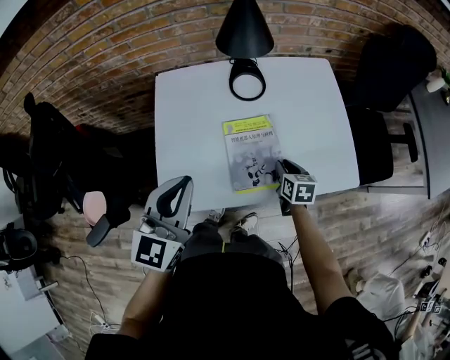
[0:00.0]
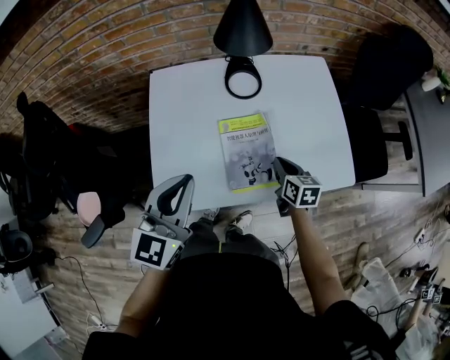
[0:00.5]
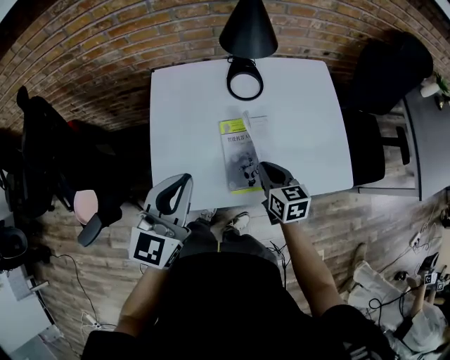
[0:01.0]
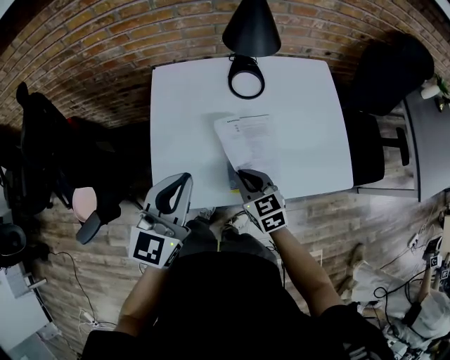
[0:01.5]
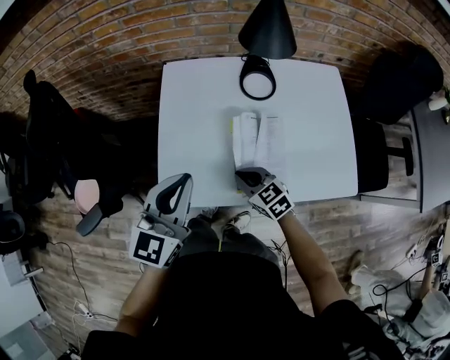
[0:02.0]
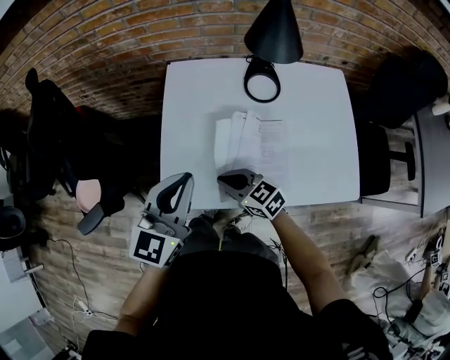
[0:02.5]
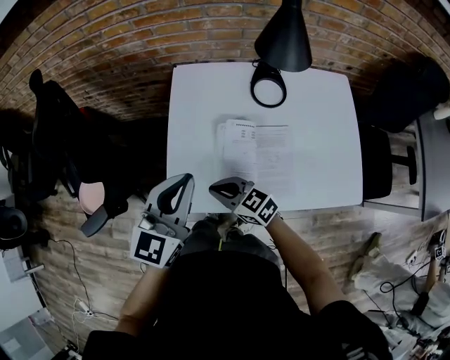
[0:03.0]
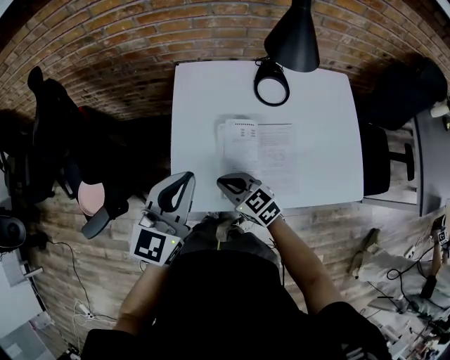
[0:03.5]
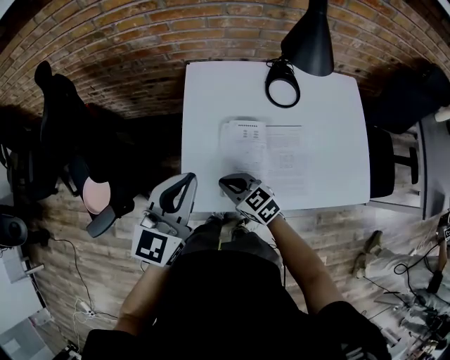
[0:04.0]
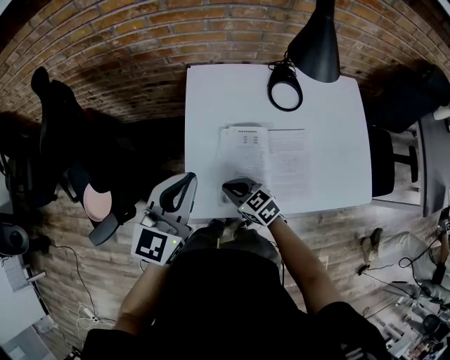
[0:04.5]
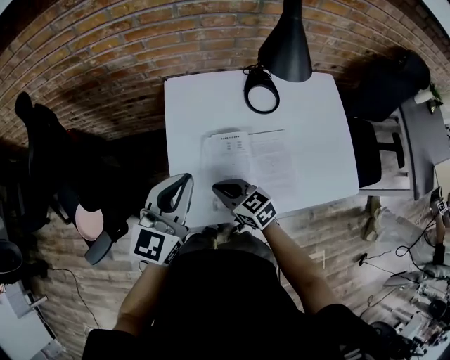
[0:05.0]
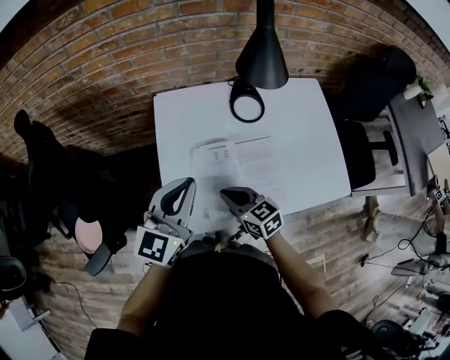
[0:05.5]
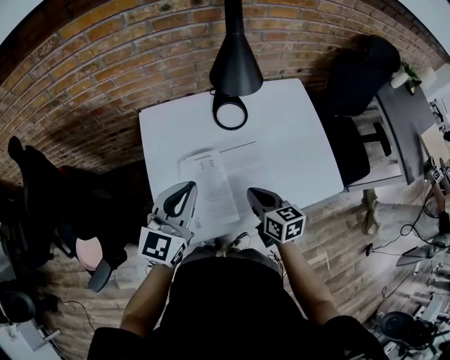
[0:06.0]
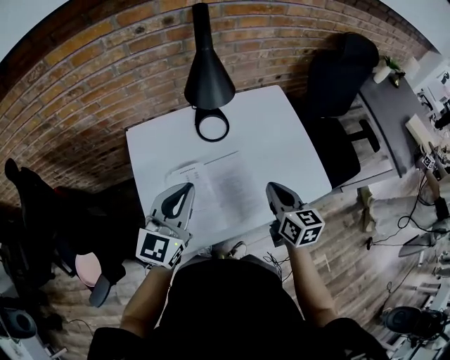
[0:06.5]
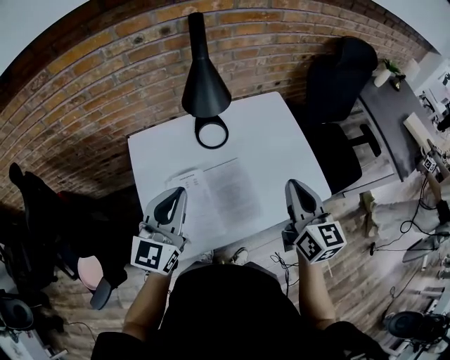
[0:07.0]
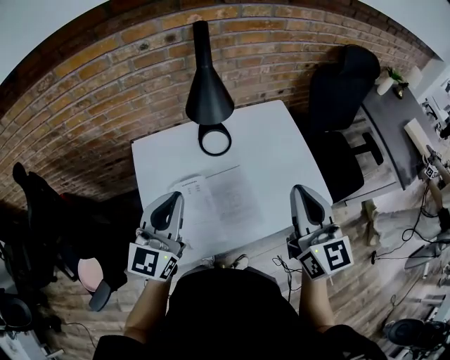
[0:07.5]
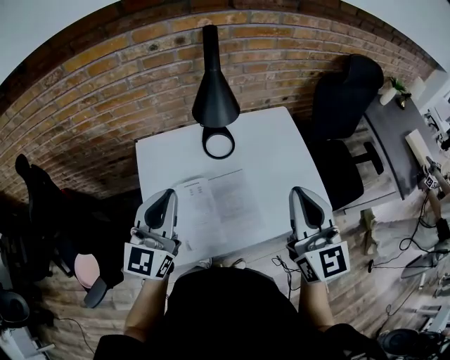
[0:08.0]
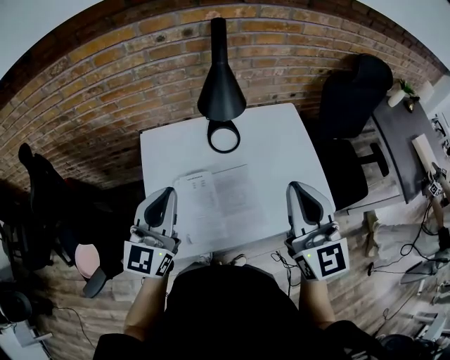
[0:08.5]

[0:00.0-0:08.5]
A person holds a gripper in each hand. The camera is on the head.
0:00.0 to 0:02.0: The right gripper goes some 20 cm to the left, rotates some 50 degrees, and closes.
0:02.0 to 0:04.0: The left gripper shifts about 5 cm to the left, while the right gripper shifts about 15 cm to the left.
0:04.0 to 0:06.5: The right gripper shifts by some 35 cm, and swivels approximately 60 degrees. The left gripper moves about 15 cm, and swivels about 20 degrees.
0:06.5 to 0:08.5: The right gripper is displaced upward by about 20 cm, and rotates some 40 degrees, while the left gripper shifts some 5 cm upward.

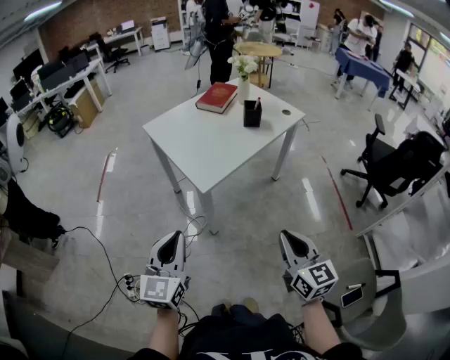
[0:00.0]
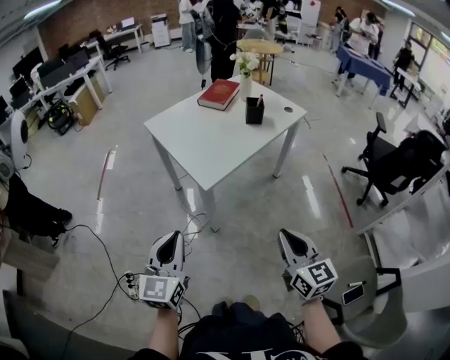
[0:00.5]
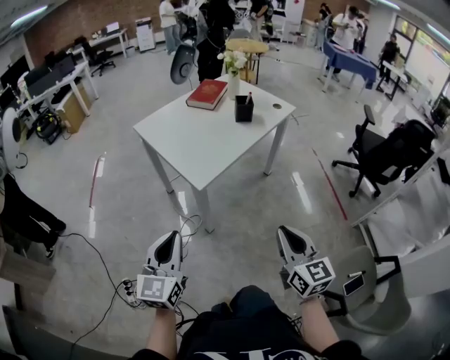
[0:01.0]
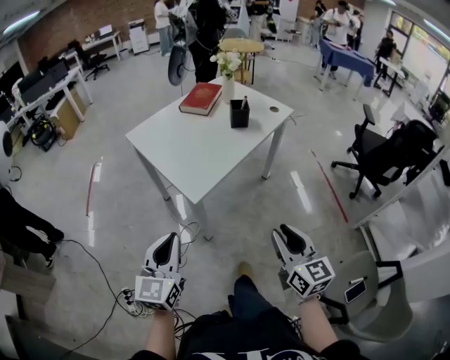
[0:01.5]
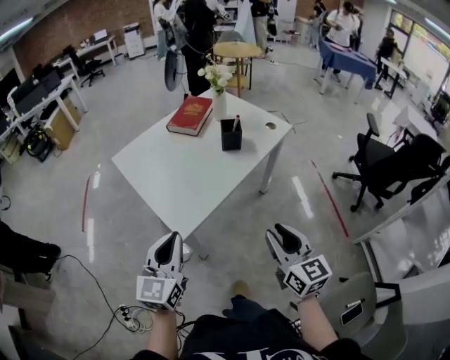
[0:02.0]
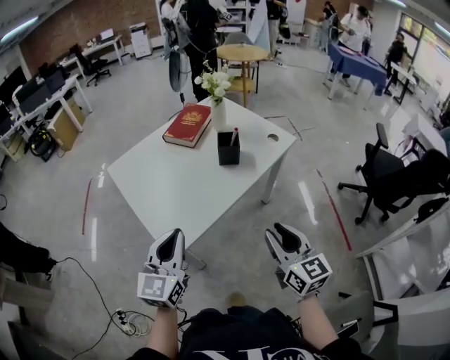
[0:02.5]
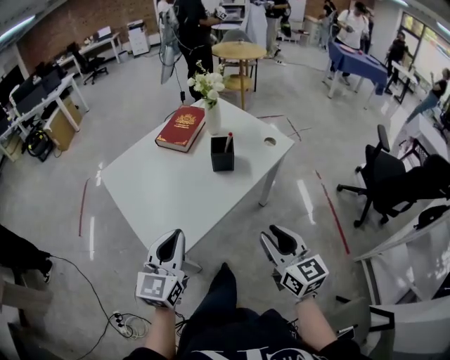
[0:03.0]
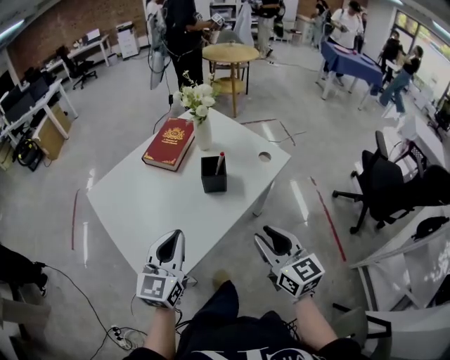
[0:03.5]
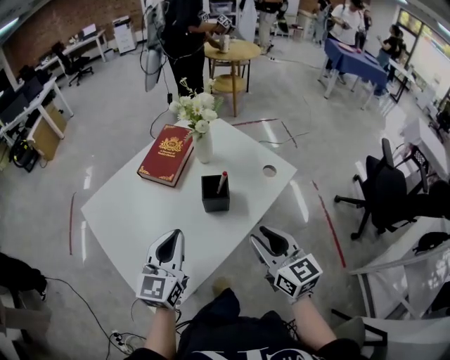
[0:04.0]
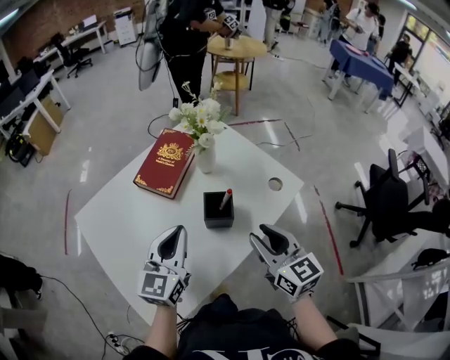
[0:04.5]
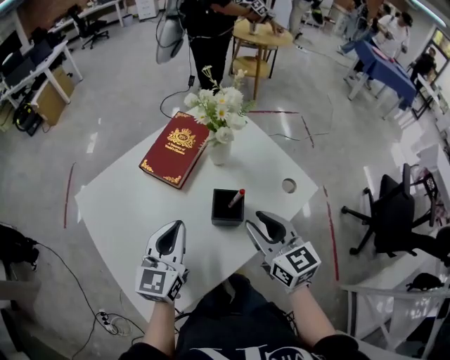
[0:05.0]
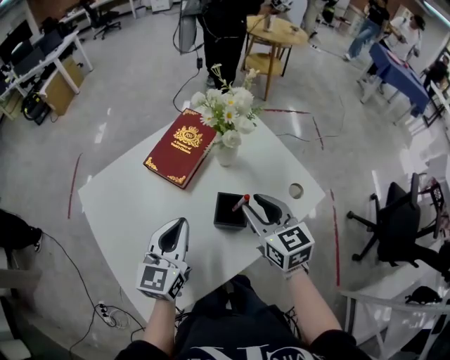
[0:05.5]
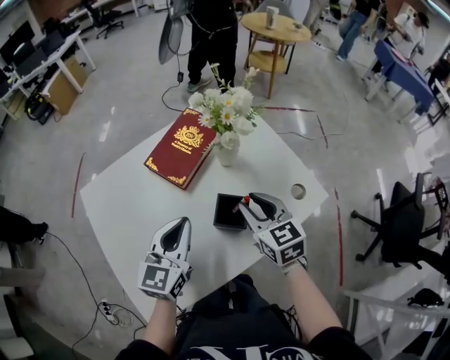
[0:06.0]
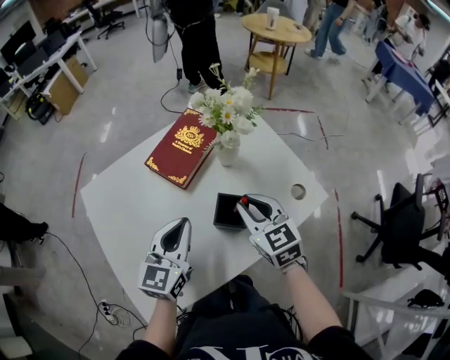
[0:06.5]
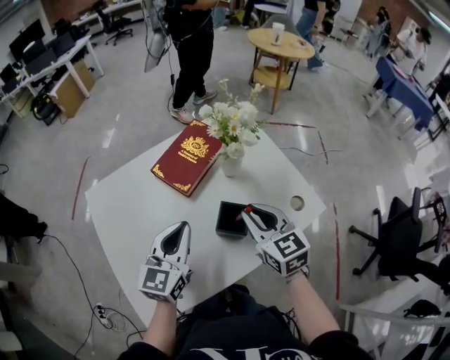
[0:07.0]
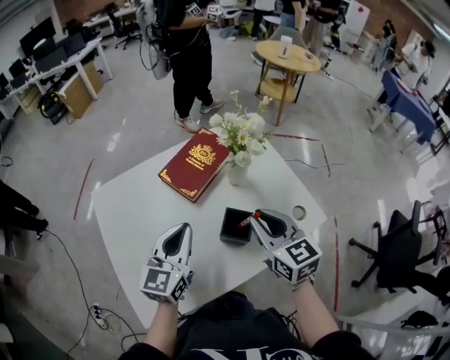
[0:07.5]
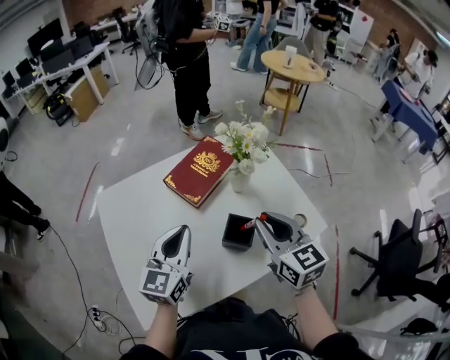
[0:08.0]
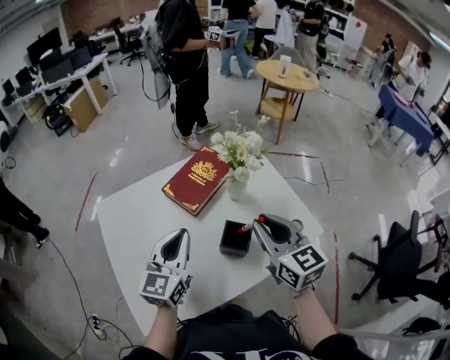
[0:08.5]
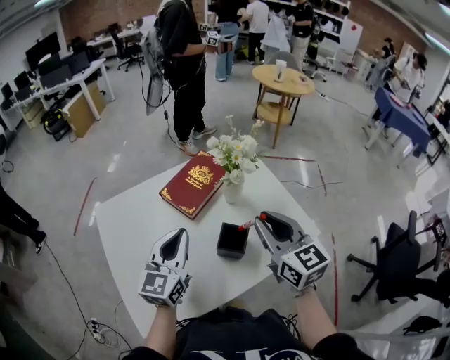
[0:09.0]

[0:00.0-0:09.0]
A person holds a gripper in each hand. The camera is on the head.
0:00.0 to 0:02.0: Both grippers travel together forward, approximately 20 cm. The right gripper opens.
0:02.0 to 0:04.5: The two grippers go some 40 cm forward.
0:04.5 to 0:07.0: The right gripper shifts roughly 15 cm forward.
0:07.0 to 0:09.0: The left gripper shifts by roughly 5 cm, while the right gripper goes roughly 10 cm upward.

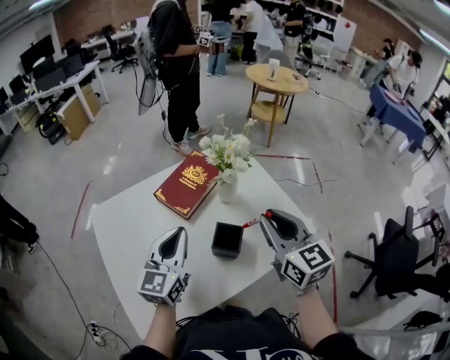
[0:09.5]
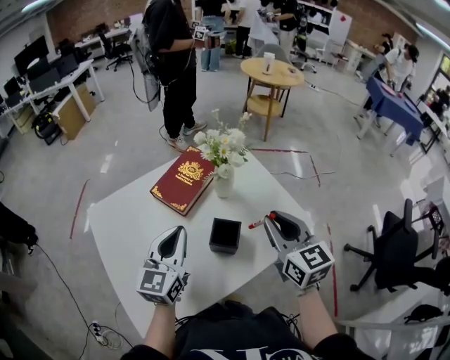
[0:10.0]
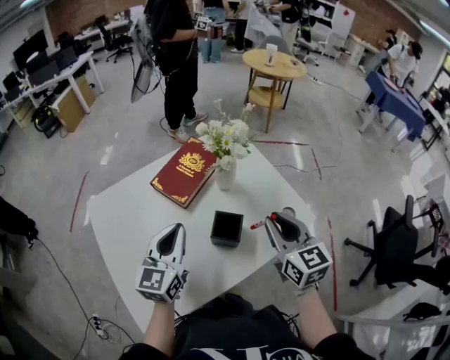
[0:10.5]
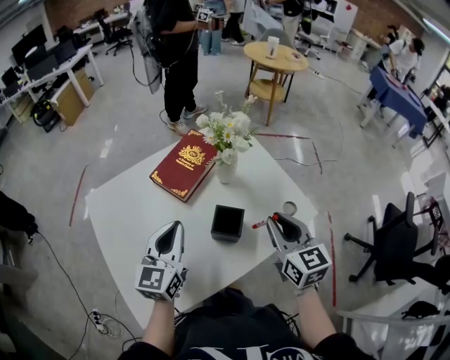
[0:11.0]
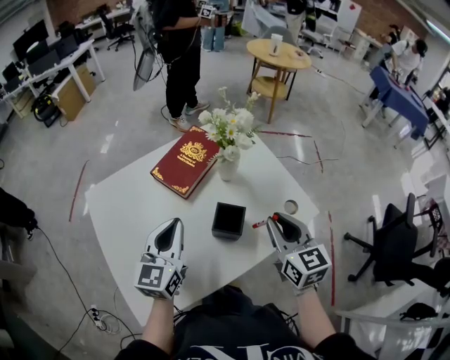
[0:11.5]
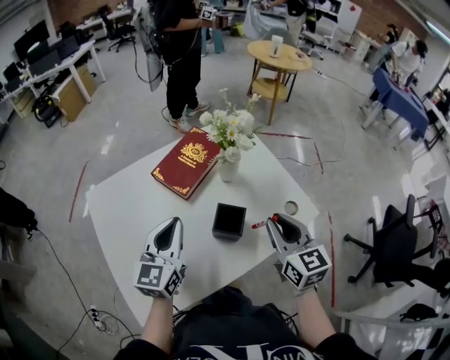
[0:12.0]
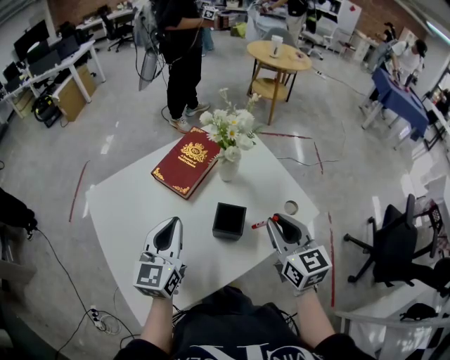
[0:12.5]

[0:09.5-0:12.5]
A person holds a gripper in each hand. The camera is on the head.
0:09.5 to 0:11.0: The right gripper is displaced downward by approximately 10 cm.
0:11.0 to 0:12.5: Neither gripper changes place.

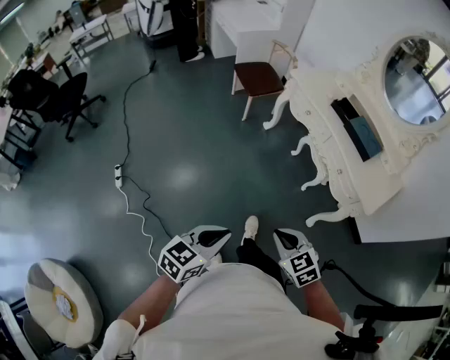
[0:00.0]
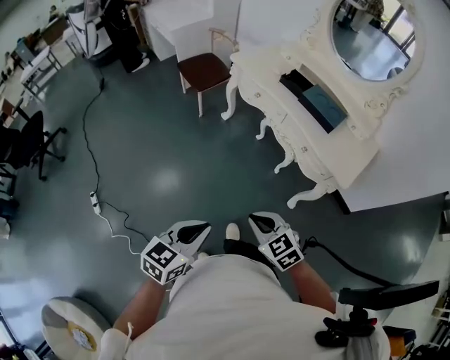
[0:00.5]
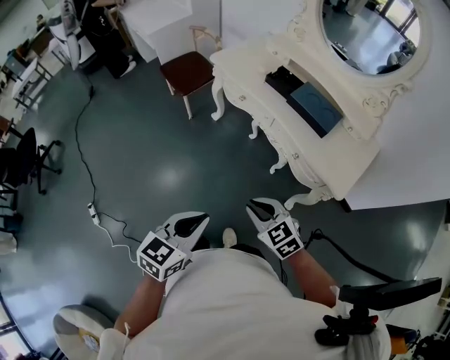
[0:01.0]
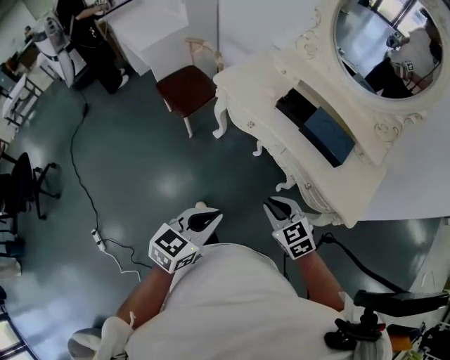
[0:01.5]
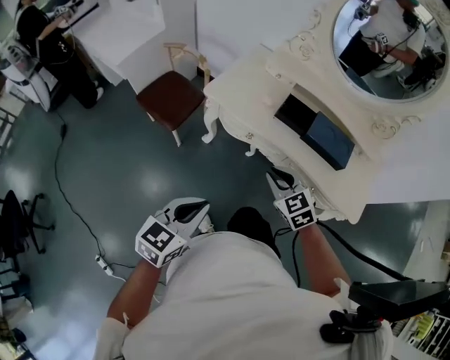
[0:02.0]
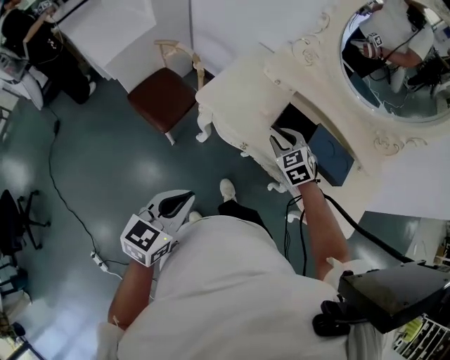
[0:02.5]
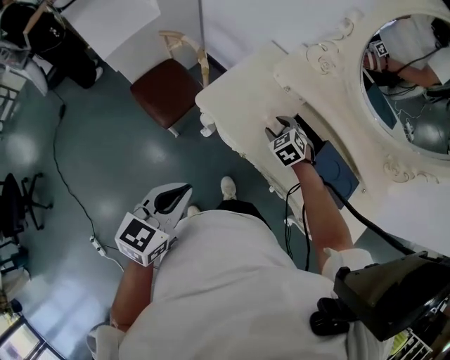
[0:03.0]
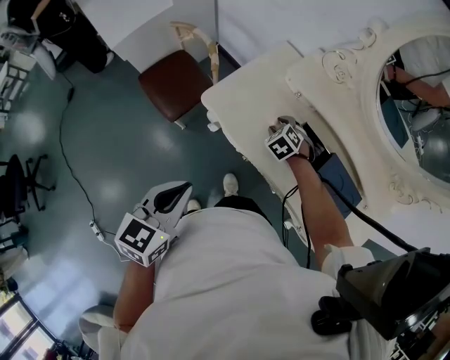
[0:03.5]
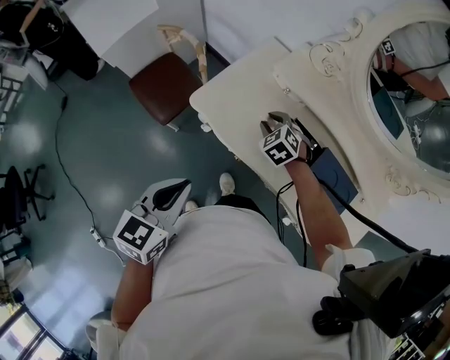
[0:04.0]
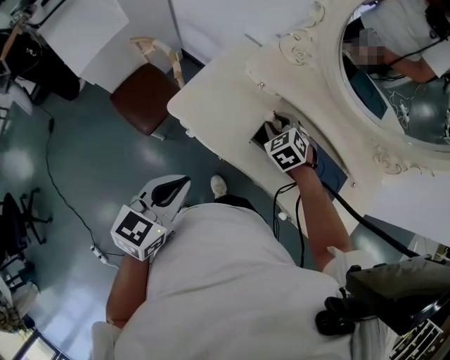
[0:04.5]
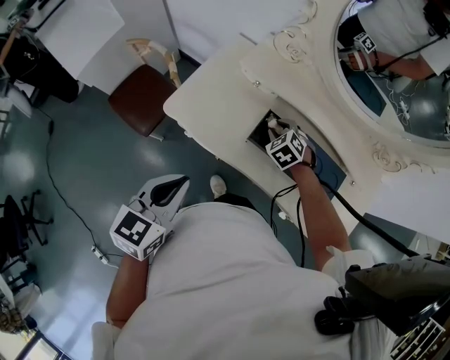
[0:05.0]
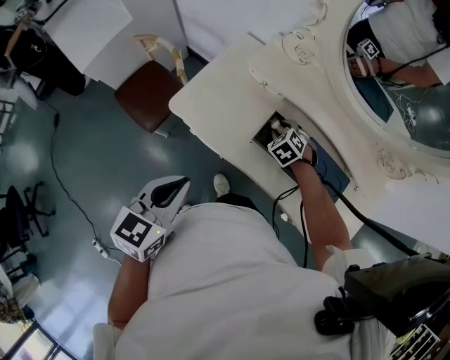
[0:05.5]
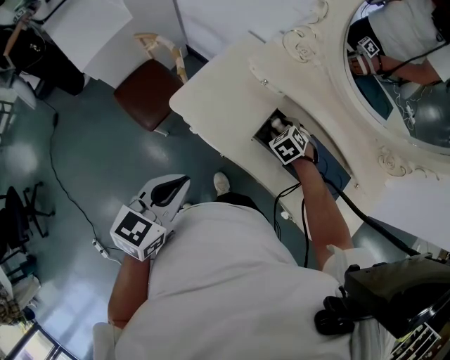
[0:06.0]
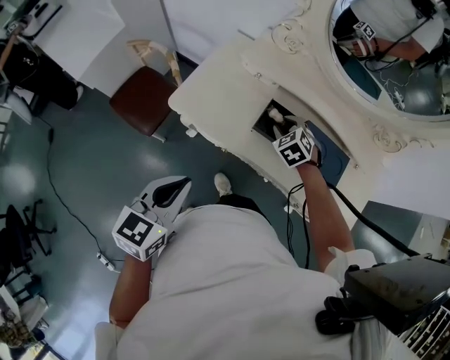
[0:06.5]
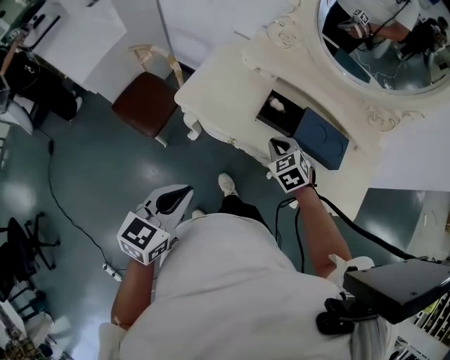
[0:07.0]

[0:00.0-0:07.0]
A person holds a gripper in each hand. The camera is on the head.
0:00.0 to 0:02.0: The pair of grippers is taken forward, approximately 60 cm. The right gripper rotates roughly 20 degrees. Meanwhile the left gripper turns by approximately 20 degrees.
0:02.0 to 0:03.5: The left gripper goes roughly 25 cm forward, and swivels some 20 degrees, while the right gripper goes about 40 cm forward and downward, swivels approximately 30 degrees, and opens its fingers.
0:03.5 to 0:05.0: The left gripper goes about 10 cm to the right and forward. The right gripper moves to the right, approximately 15 cm.
0:05.0 to 0:07.0: The grippers both shift backward by some 20 cm. The right gripper closes.
